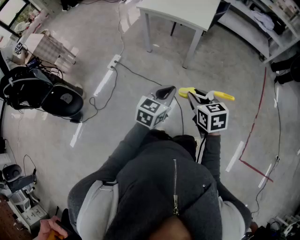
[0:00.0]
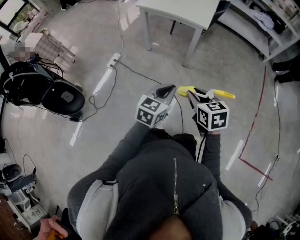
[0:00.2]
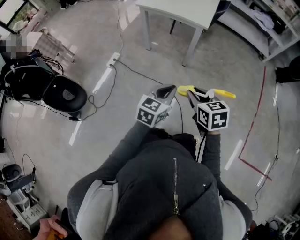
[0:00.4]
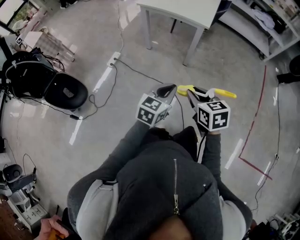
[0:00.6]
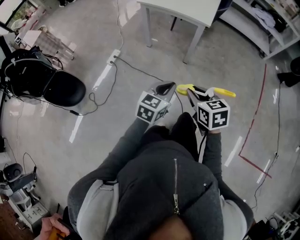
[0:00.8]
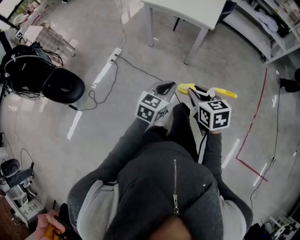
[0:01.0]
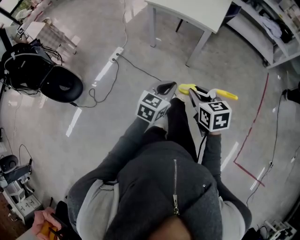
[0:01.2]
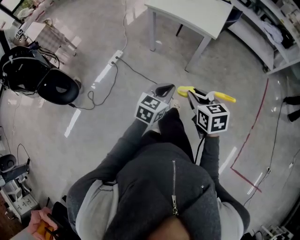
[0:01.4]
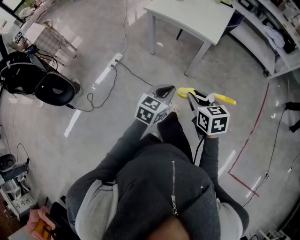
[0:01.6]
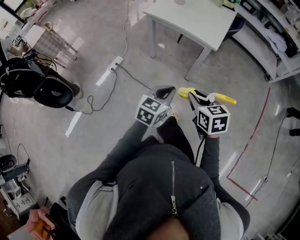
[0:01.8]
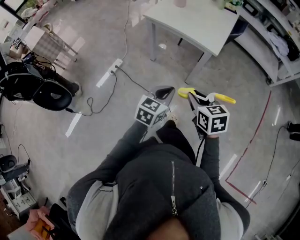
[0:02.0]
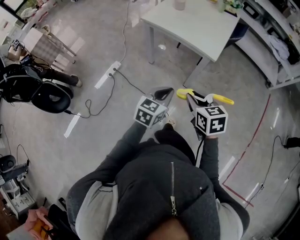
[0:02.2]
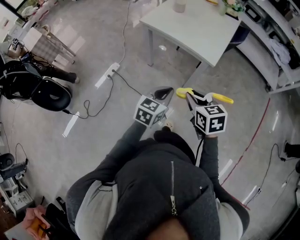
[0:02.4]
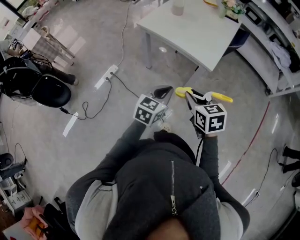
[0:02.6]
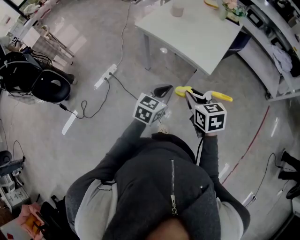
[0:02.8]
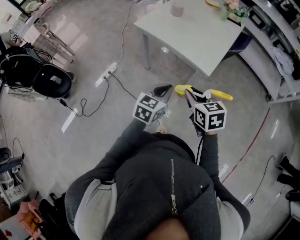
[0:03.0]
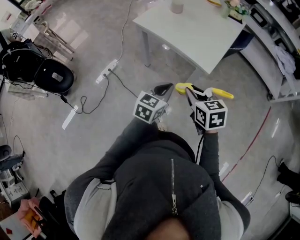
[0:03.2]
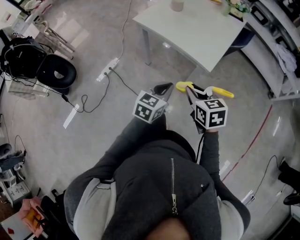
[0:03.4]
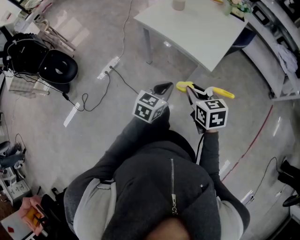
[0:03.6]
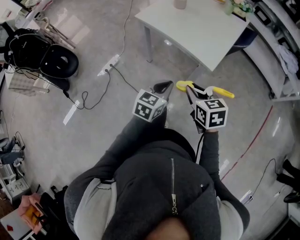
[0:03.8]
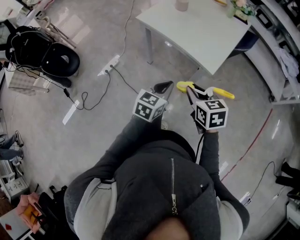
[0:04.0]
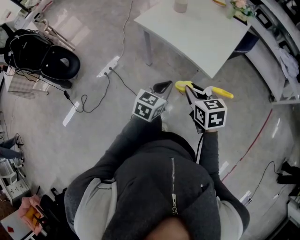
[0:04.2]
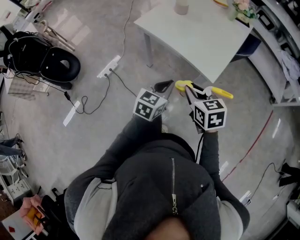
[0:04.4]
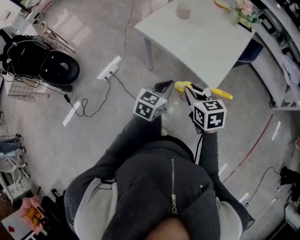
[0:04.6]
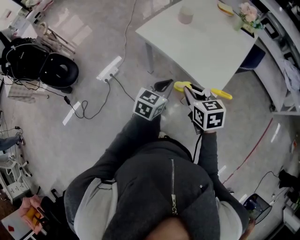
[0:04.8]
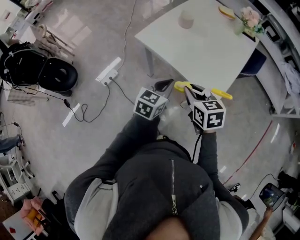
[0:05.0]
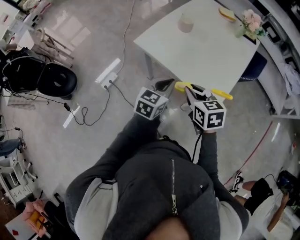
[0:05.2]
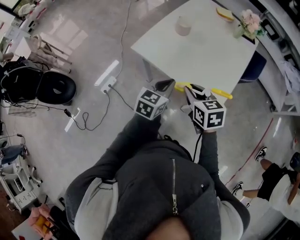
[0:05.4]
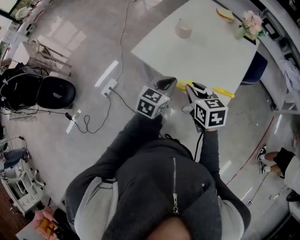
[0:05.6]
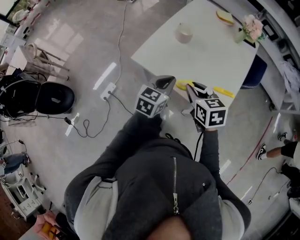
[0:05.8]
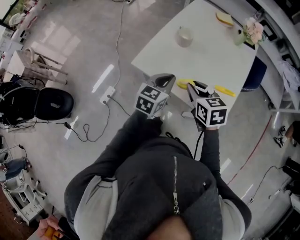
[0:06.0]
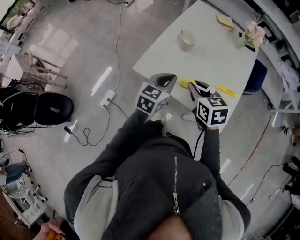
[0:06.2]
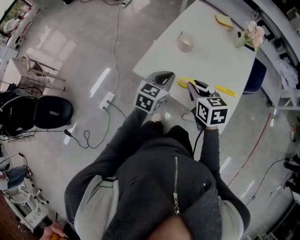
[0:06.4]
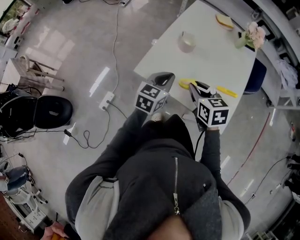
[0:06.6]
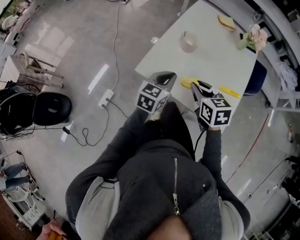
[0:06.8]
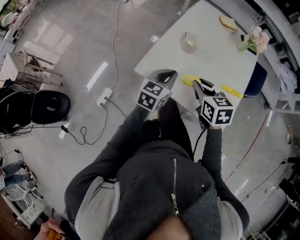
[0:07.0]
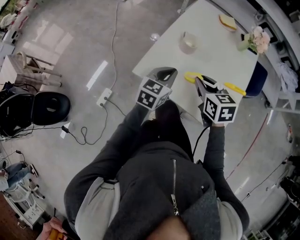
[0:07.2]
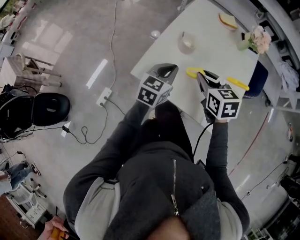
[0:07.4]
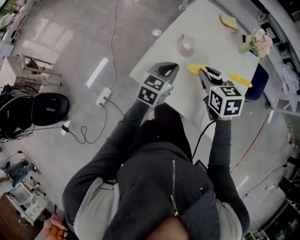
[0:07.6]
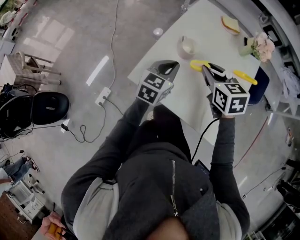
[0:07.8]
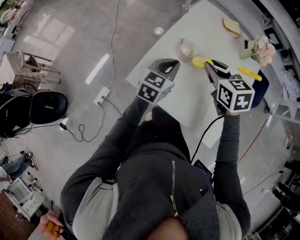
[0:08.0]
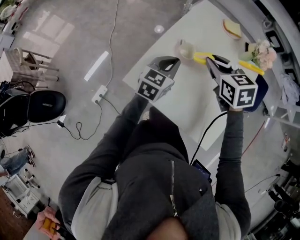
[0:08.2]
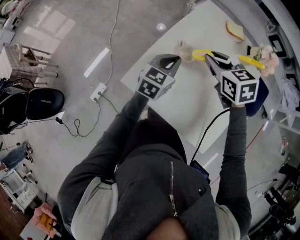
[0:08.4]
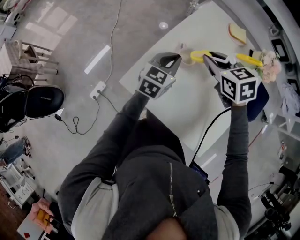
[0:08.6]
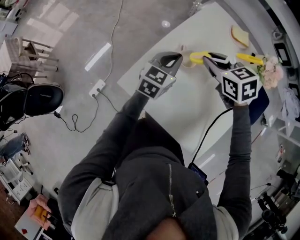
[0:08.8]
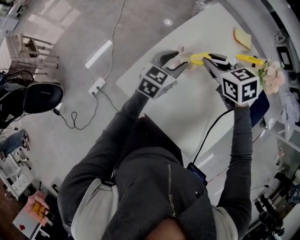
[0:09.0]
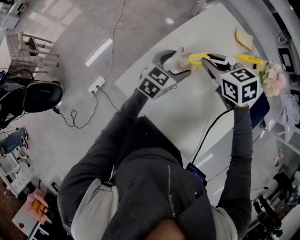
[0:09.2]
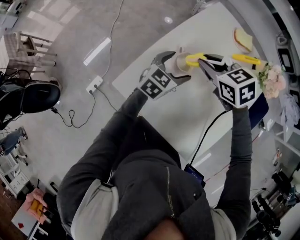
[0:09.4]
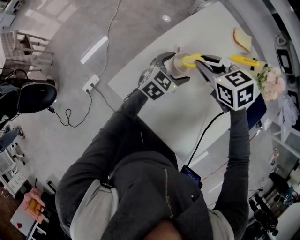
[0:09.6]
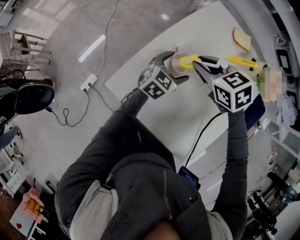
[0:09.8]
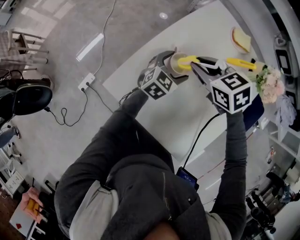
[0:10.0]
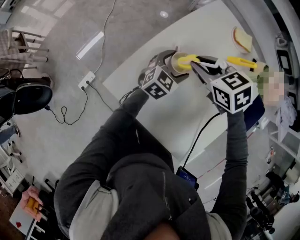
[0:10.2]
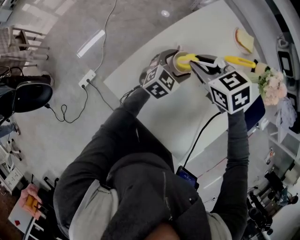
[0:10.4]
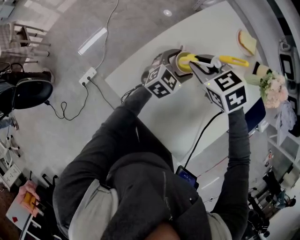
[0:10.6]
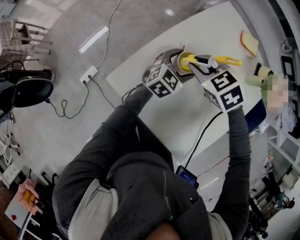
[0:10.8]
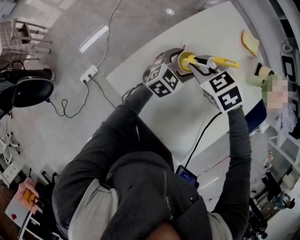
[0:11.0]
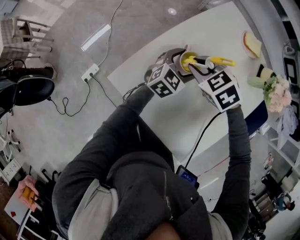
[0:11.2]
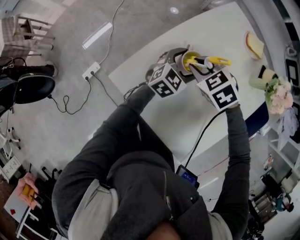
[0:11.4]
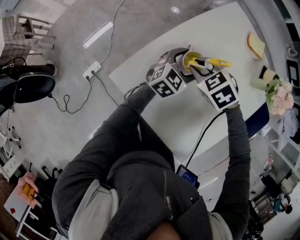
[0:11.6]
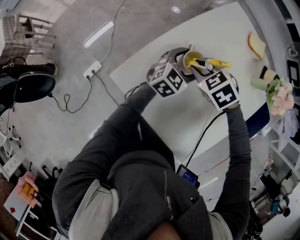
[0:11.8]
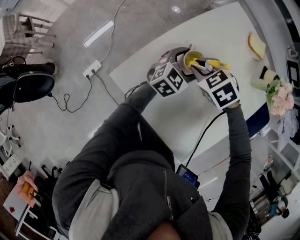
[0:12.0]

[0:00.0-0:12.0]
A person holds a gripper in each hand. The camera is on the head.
0:00.0 to 0:01.6: Both grippers travel together forward, roughly 10 cm.
0:01.6 to 0:03.0: Both grippers move forward, about 25 cm.
0:03.0 to 0:04.4: Both grippers move forward, approximately 5 cm.
0:04.4 to 0:06.0: Both grippers move forward, roughly 30 cm.
0:06.0 to 0:07.6: Both grippers move forward, some 15 cm.
0:07.6 to 0:09.0: The two grippers go approximately 15 cm forward. The right gripper turns by approximately 30 degrees. Meanwhile the left gripper opens.
0:09.0 to 0:10.4: The left gripper travels downward and to the right by about 10 cm, and opens up.
0:10.4 to 0:12.0: The right gripper moves downward, about 5 cm.

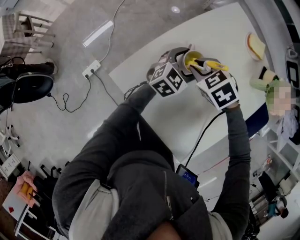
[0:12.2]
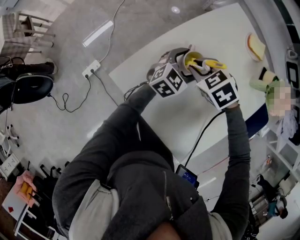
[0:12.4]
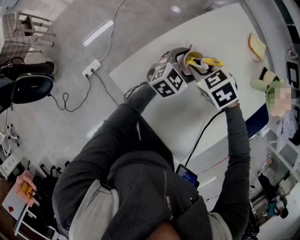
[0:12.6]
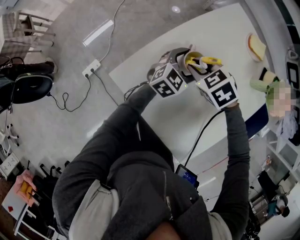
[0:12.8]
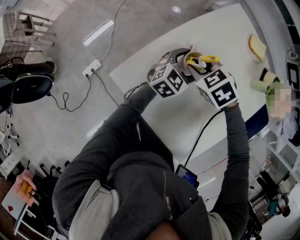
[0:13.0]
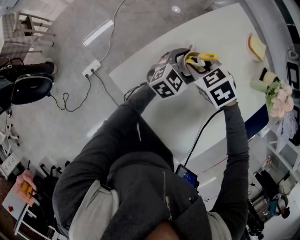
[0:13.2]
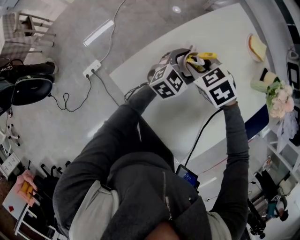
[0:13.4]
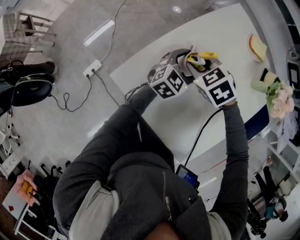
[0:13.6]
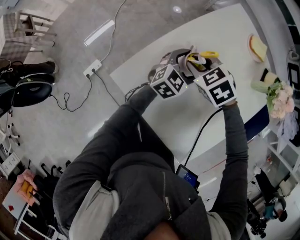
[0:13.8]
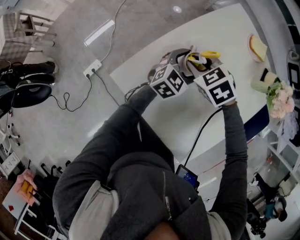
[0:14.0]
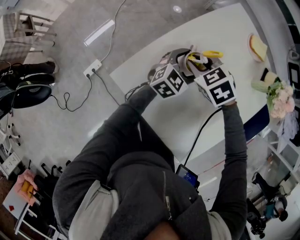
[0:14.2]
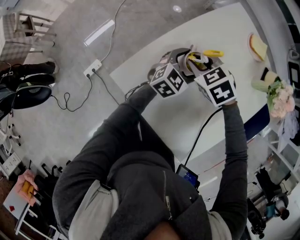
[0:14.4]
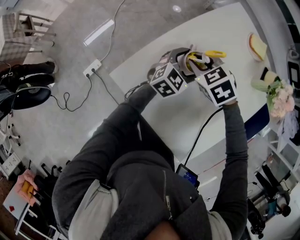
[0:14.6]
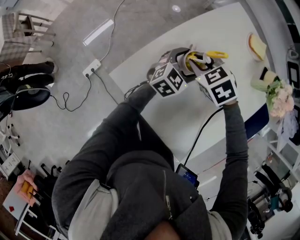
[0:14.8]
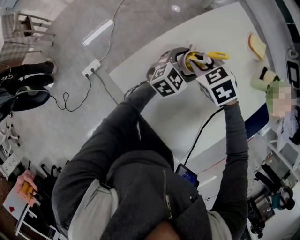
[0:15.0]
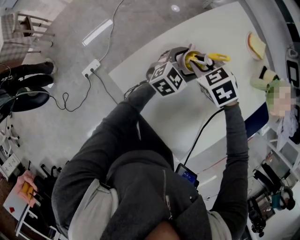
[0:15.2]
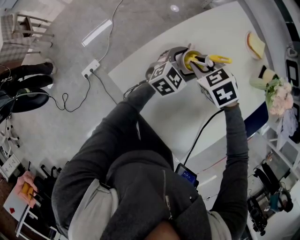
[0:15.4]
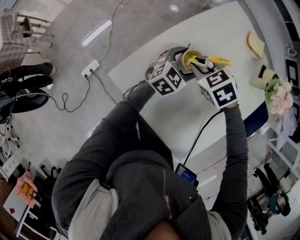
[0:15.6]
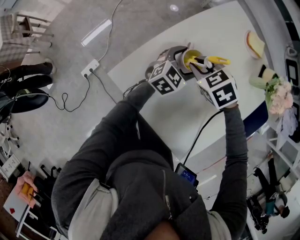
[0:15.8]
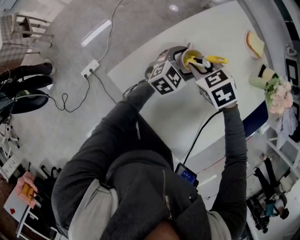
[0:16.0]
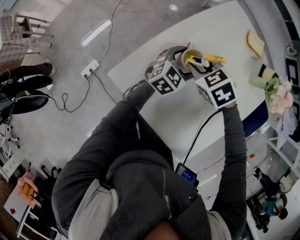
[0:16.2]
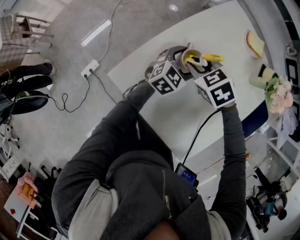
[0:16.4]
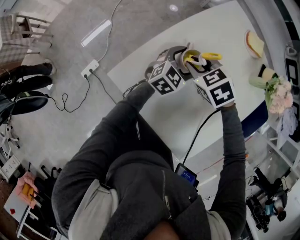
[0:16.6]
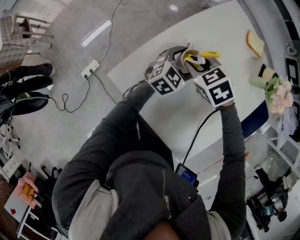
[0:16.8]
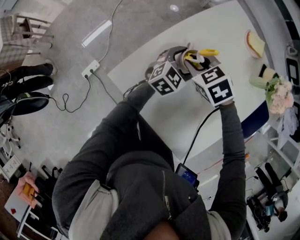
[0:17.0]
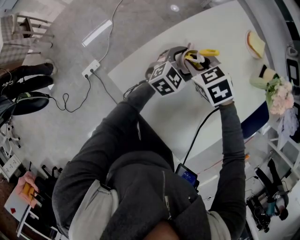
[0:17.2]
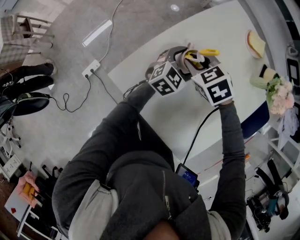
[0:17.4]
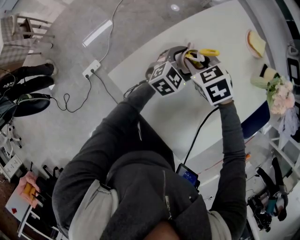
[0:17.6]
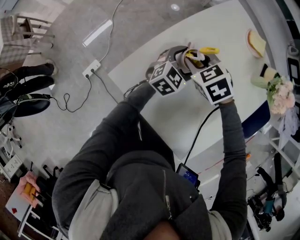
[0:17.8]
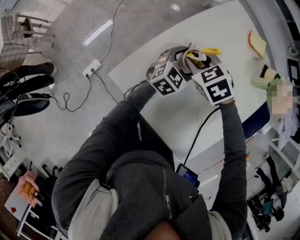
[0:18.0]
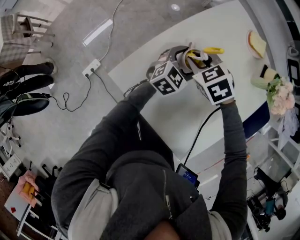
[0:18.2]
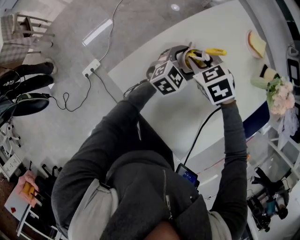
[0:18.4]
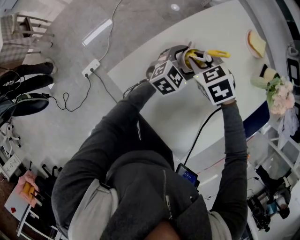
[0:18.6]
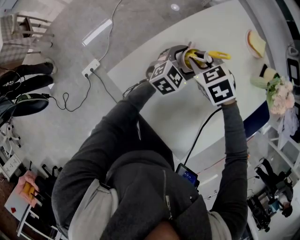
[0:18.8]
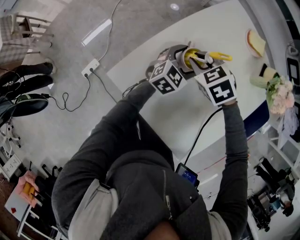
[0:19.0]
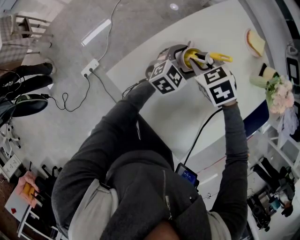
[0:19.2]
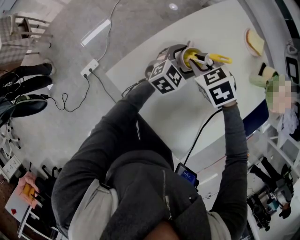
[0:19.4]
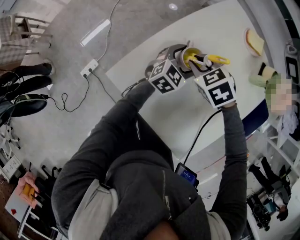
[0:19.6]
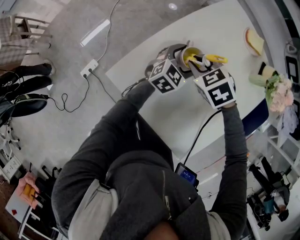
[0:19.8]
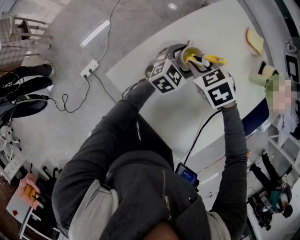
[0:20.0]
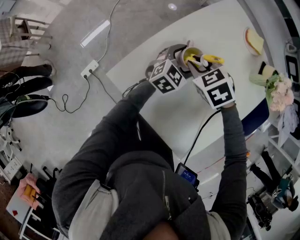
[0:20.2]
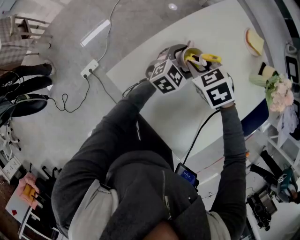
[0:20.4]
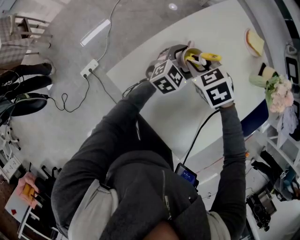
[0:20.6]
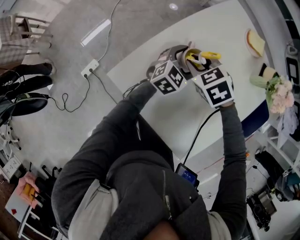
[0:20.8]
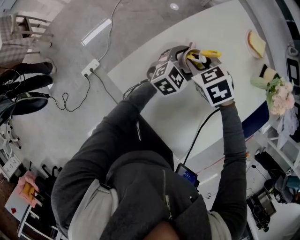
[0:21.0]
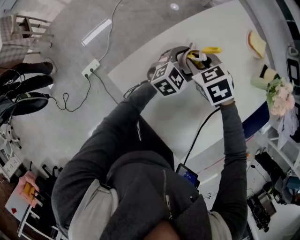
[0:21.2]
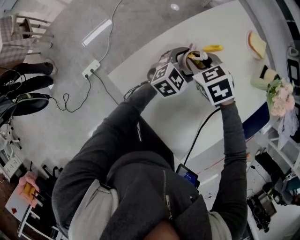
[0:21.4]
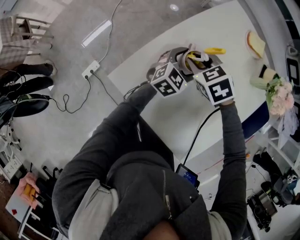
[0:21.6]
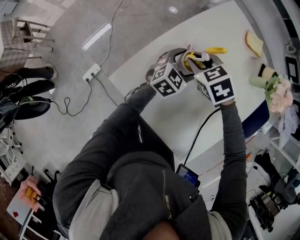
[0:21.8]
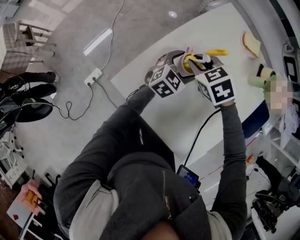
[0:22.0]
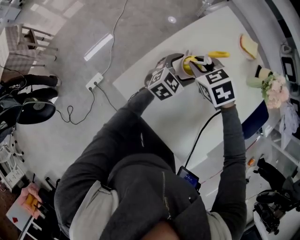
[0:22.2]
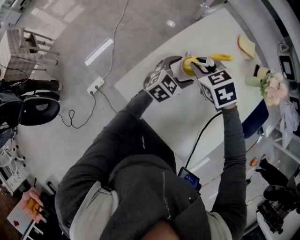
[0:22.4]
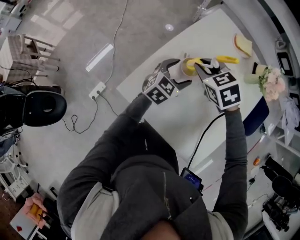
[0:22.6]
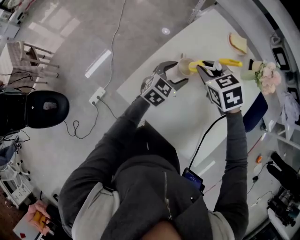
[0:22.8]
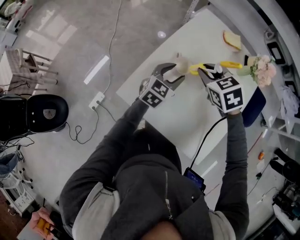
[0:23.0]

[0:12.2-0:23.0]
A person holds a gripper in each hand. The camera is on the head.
0:12.2 to 0:15.2: The grippers make only small movements.
0:15.2 to 0:16.8: Both grippers stay about where they are.
0:16.8 to 0:18.4: Both grippers stay put.
0:18.4 to 0:21.4: The grippers move only a little.
0:21.4 to 0:23.0: The right gripper shifts some 15 cm upward and to the right. The left gripper shifts roughly 10 cm upward, and closes its fingers.

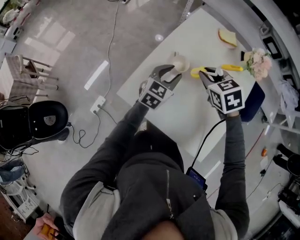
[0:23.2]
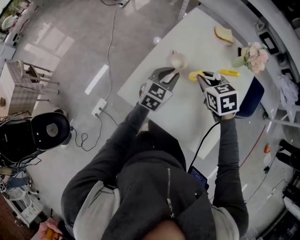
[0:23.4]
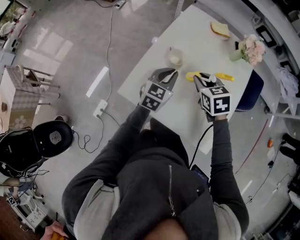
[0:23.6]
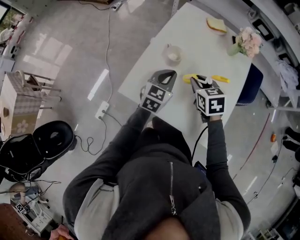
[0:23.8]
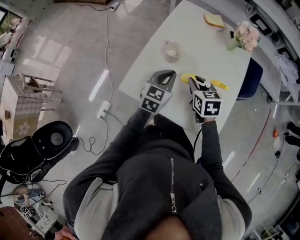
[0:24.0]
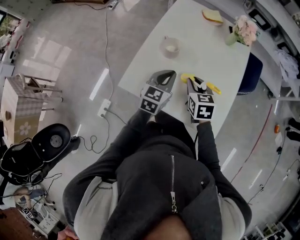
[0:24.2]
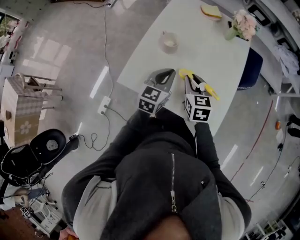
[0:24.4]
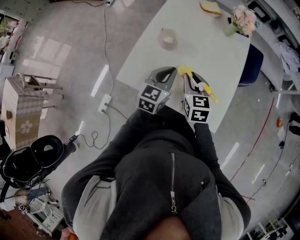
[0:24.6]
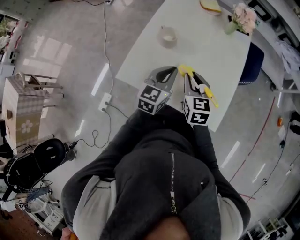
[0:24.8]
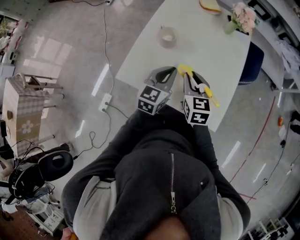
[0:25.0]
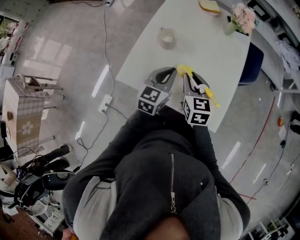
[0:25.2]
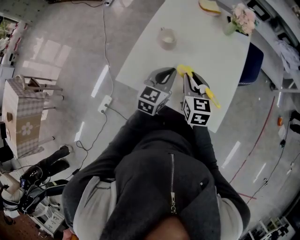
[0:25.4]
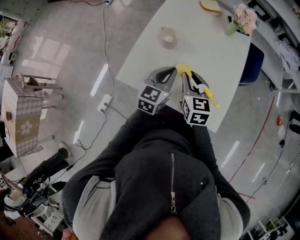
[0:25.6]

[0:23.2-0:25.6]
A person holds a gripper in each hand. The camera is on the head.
0:23.2 to 0:24.4: The right gripper is displaced backward and downward by roughly 15 cm, and swivels some 40 degrees, while the left gripper is displaced backward by about 10 cm, and closes up.
0:24.4 to 0:25.6: There are only small adjustments of the grippers.
